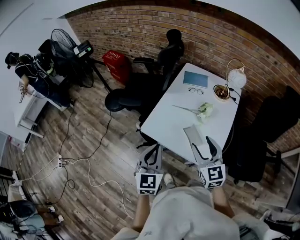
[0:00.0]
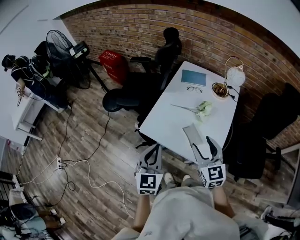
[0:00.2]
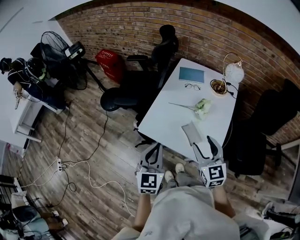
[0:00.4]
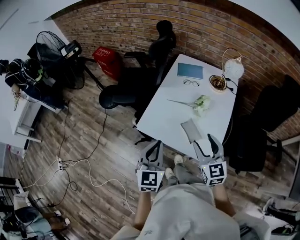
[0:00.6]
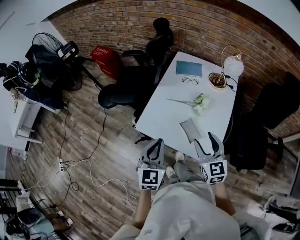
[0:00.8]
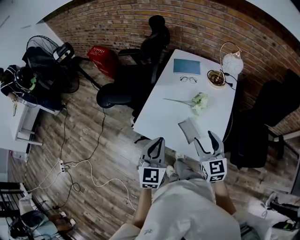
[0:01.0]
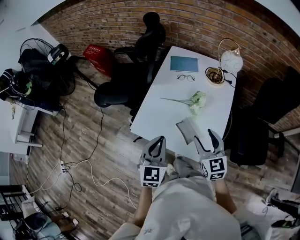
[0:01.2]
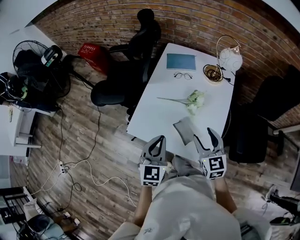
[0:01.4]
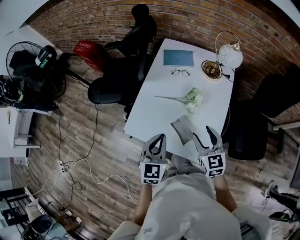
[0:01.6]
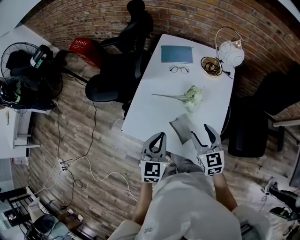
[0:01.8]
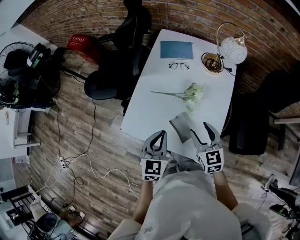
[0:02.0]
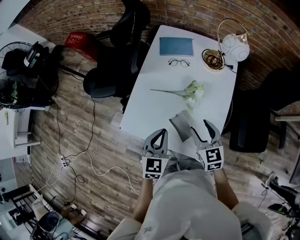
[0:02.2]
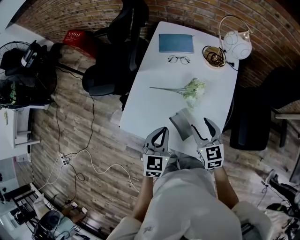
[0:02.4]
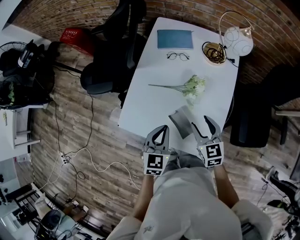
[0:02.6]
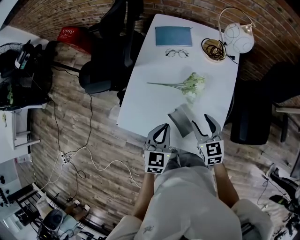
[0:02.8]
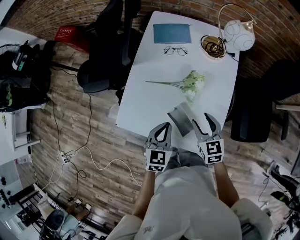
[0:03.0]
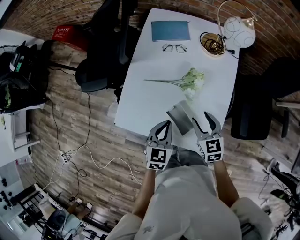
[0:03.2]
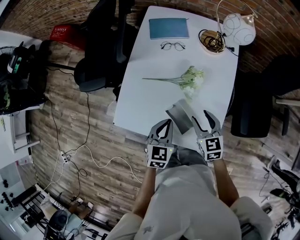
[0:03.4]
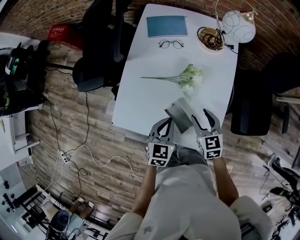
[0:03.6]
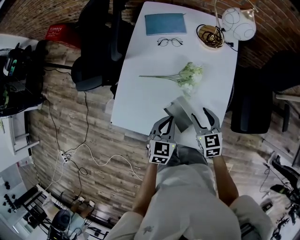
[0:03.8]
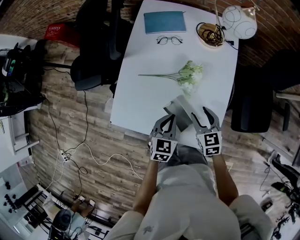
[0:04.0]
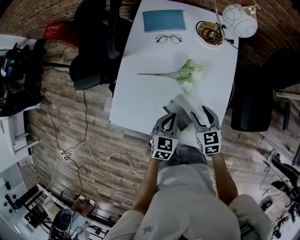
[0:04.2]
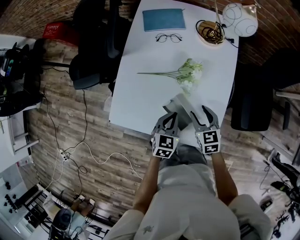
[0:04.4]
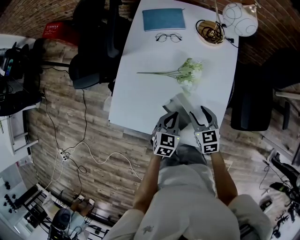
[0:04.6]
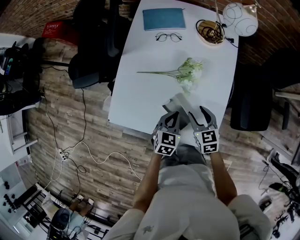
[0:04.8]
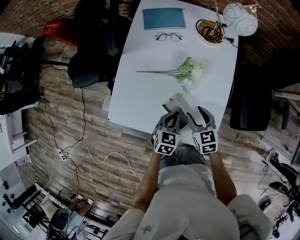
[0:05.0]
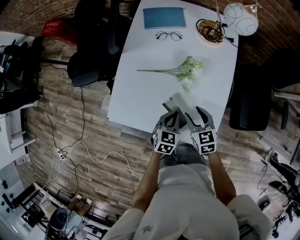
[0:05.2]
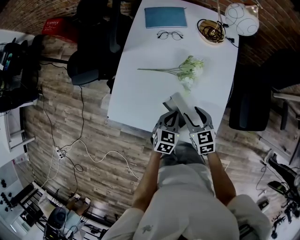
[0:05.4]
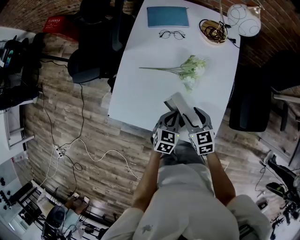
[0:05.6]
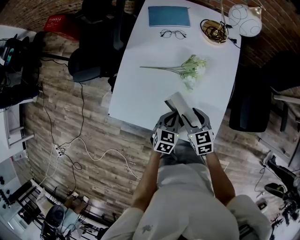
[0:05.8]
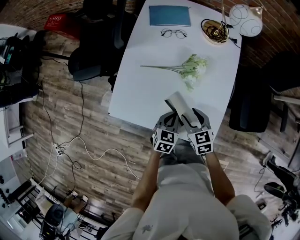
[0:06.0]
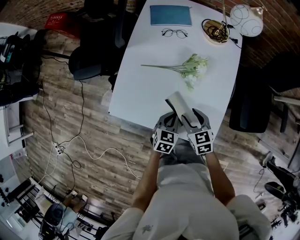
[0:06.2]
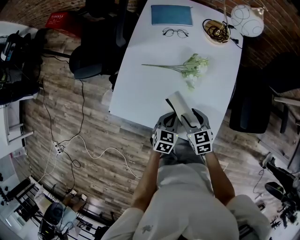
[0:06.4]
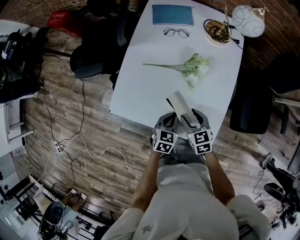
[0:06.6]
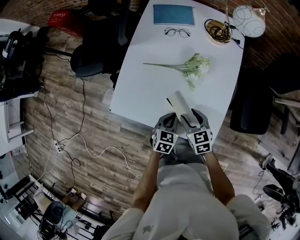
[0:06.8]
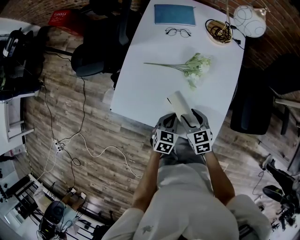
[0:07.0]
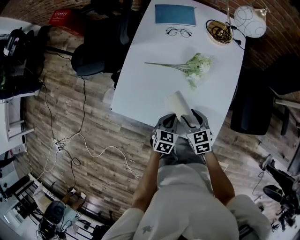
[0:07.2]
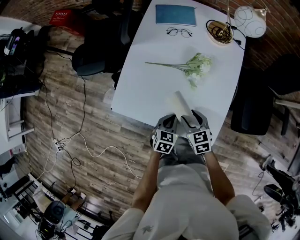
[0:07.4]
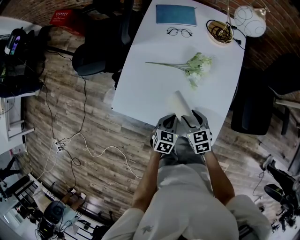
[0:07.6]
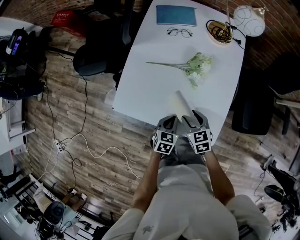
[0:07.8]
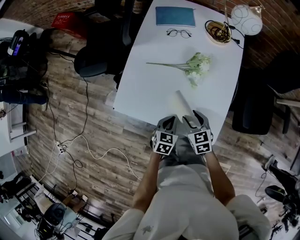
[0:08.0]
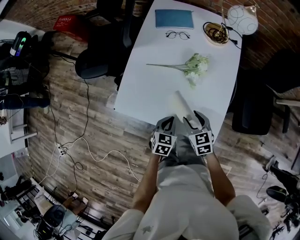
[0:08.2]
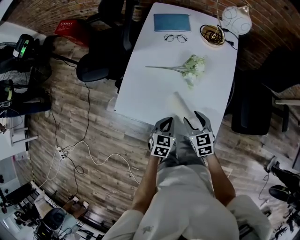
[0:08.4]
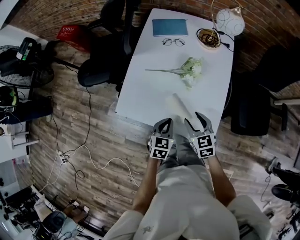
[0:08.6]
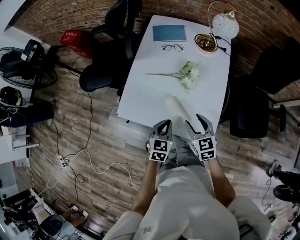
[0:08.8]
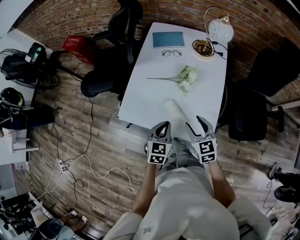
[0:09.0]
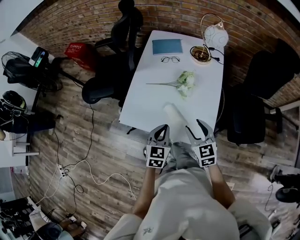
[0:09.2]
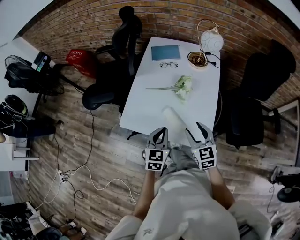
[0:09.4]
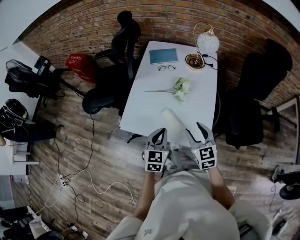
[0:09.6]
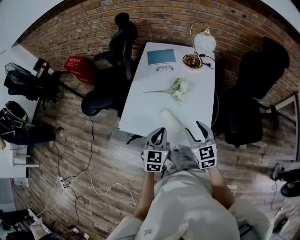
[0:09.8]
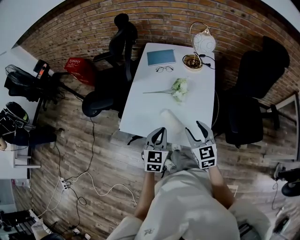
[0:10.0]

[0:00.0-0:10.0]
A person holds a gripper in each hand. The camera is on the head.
0:00.0 to 0:01.4: The left gripper travels forward, to the right and downward by about 15 cm. Meanwhile the right gripper heads downward, forward and to the right, covering roughly 15 cm.
0:01.4 to 0:02.8: Both grippers move downward and forward, roughly 10 cm.
0:02.8 to 0:04.2: The grippers both shift downward by approximately 10 cm.
0:04.2 to 0:05.8: The right gripper shifts by about 5 cm. Meanwhile the left gripper shifts by approximately 5 cm.
0:05.8 to 0:07.2: The grippers move only a little.
0:07.2 to 0:08.6: The two grippers go some 5 cm upward.
0:08.6 to 0:10.0: The grippers both shift upward by about 15 cm.

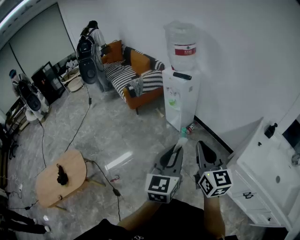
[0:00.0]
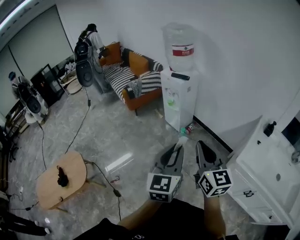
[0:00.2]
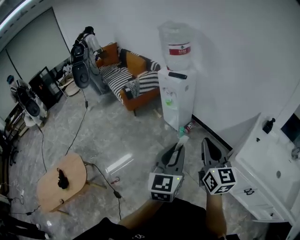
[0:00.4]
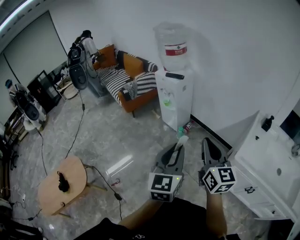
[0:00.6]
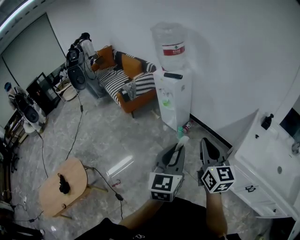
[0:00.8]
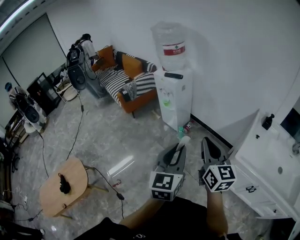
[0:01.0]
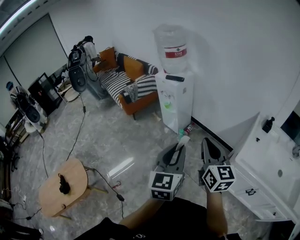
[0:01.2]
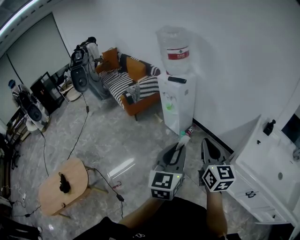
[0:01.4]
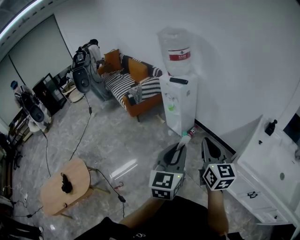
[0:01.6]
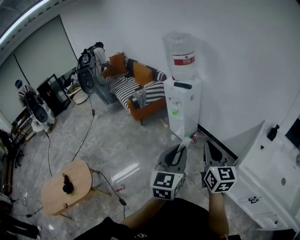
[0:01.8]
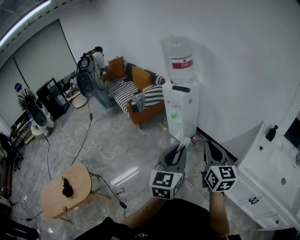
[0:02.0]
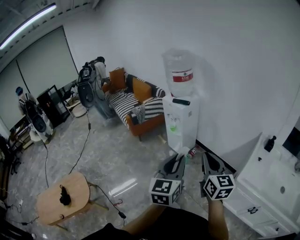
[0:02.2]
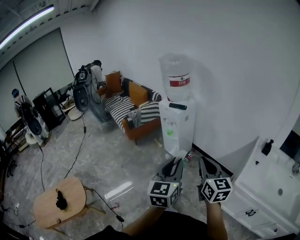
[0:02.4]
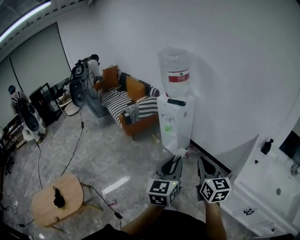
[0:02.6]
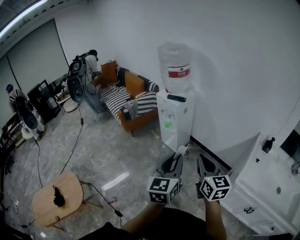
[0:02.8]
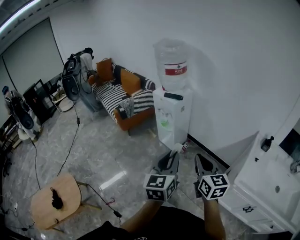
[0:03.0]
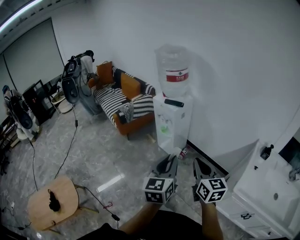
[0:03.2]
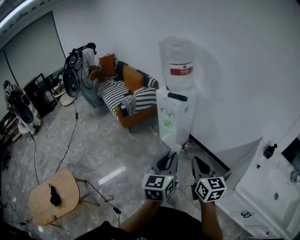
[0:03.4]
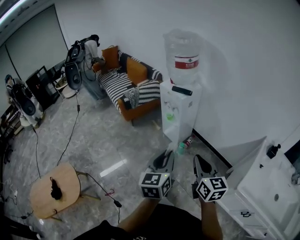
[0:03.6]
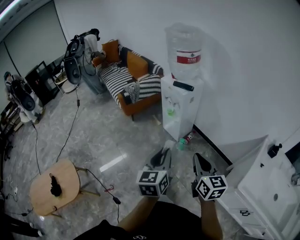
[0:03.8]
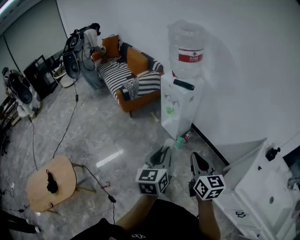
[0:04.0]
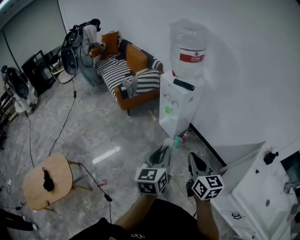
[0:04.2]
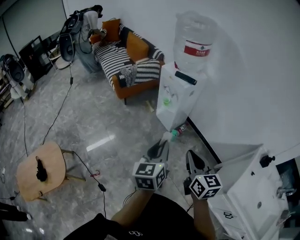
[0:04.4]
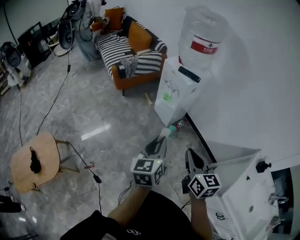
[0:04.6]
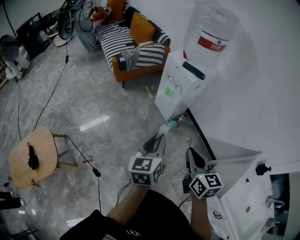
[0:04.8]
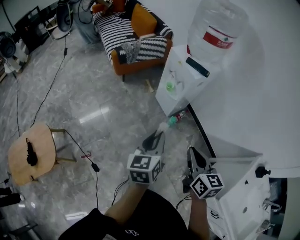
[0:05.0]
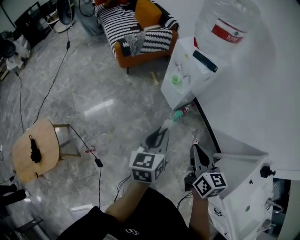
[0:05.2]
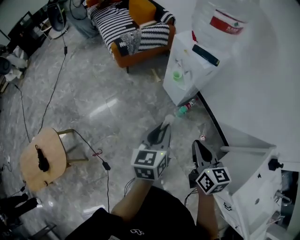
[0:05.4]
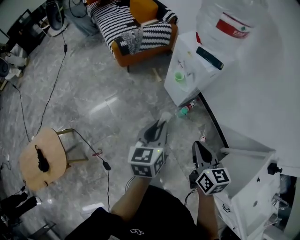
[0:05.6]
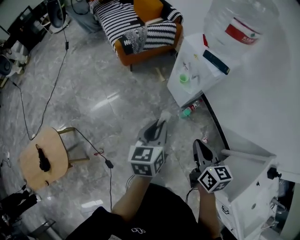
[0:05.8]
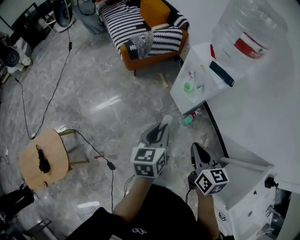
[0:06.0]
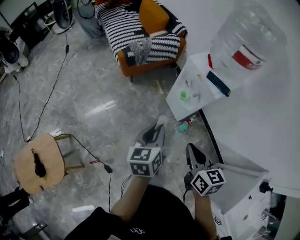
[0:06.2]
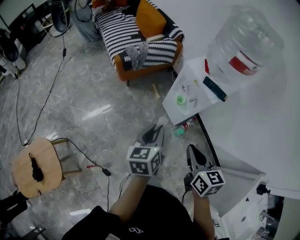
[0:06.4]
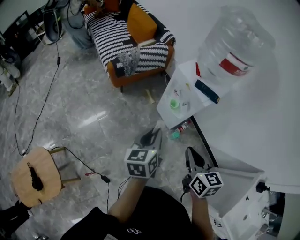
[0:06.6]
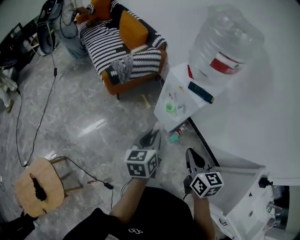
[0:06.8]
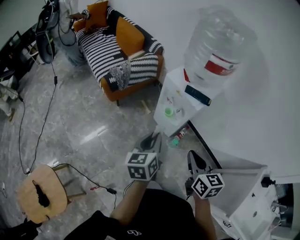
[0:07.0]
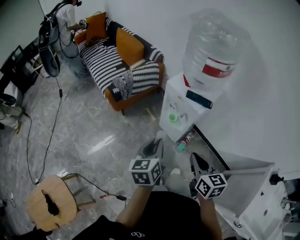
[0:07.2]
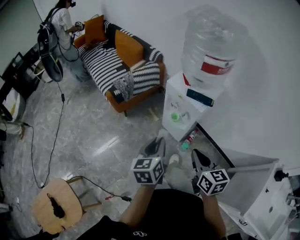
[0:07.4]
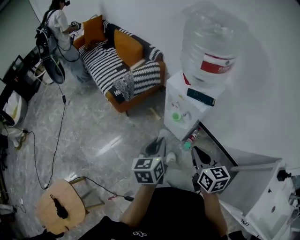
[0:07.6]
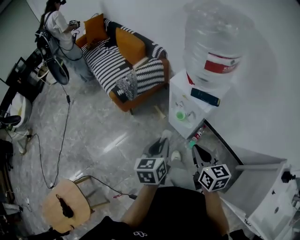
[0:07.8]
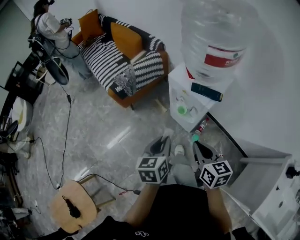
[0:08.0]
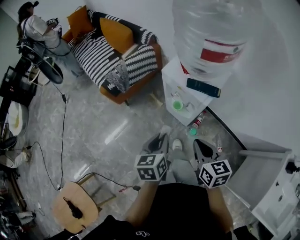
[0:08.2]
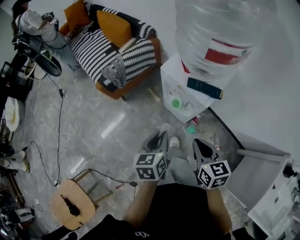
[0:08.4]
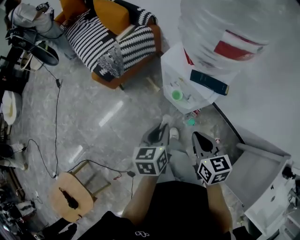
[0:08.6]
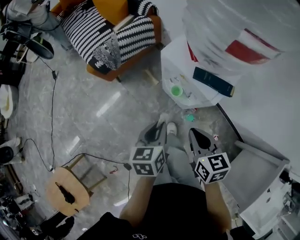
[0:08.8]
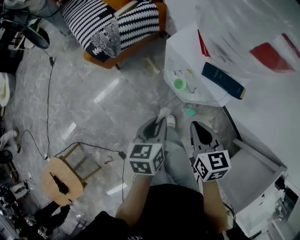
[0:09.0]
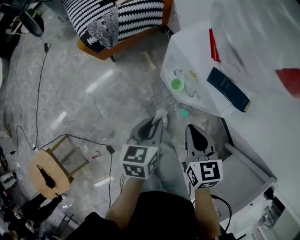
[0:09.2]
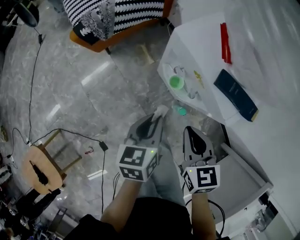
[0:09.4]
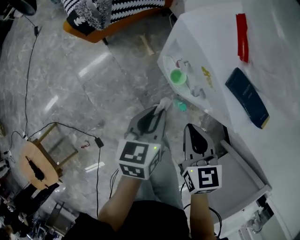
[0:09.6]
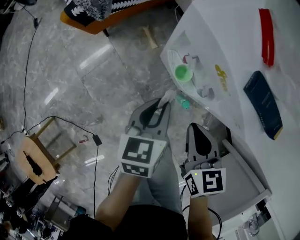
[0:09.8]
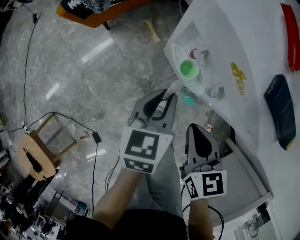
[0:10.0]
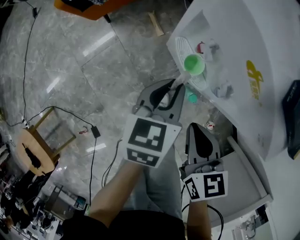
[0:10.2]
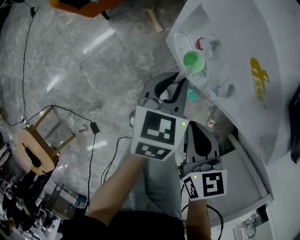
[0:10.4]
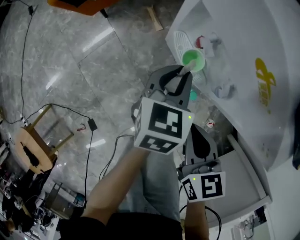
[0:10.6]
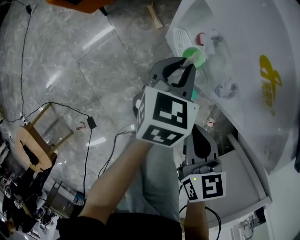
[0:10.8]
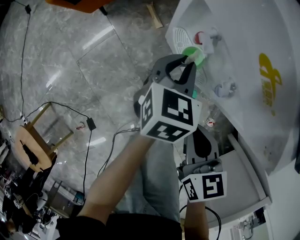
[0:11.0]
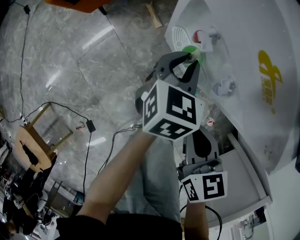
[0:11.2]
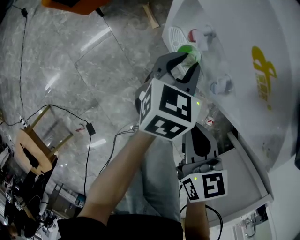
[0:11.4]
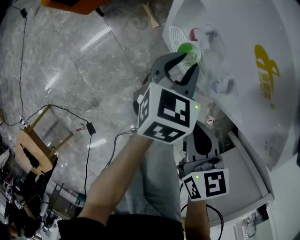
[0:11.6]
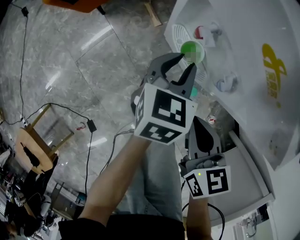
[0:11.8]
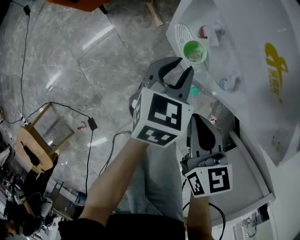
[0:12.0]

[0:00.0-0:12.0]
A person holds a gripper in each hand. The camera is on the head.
0:00.0 to 0:01.6: The right gripper moves approximately 5 cm.
0:01.6 to 0:03.0: Both grippers move forward, some 10 cm.
0:03.0 to 0:04.4: The left gripper travels forward, downward and to the left by some 15 cm. Meanwhile the right gripper heads forward, to the left and downward, covering about 10 cm.
0:04.4 to 0:06.0: The right gripper is displaced forward and to the left by some 25 cm; the left gripper shifts about 25 cm forward, to the left and downward.
0:06.0 to 0:07.6: The two grippers go approximately 10 cm forward.
0:07.6 to 0:09.0: The right gripper travels forward and downward by about 20 cm, while the left gripper is displaced downward and forward by about 20 cm.
0:09.0 to 0:10.4: The right gripper heads downward, covering roughly 15 cm; the left gripper shifts about 20 cm downward and forward.

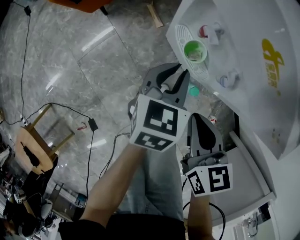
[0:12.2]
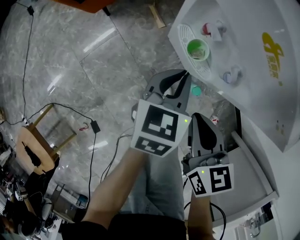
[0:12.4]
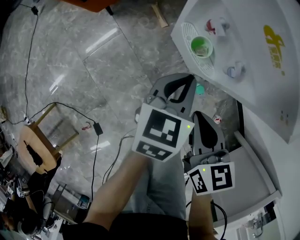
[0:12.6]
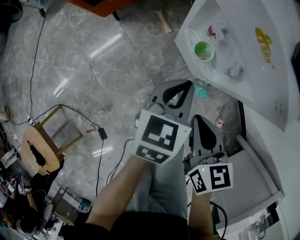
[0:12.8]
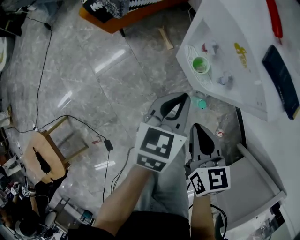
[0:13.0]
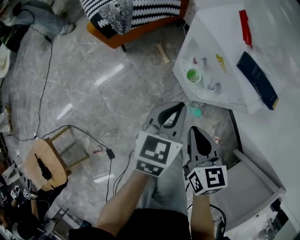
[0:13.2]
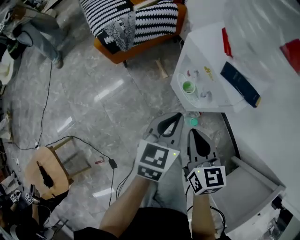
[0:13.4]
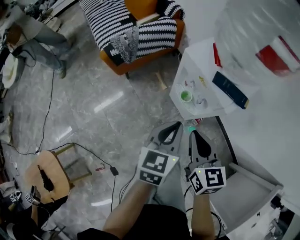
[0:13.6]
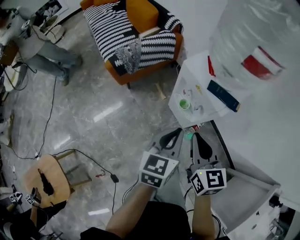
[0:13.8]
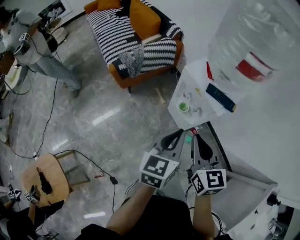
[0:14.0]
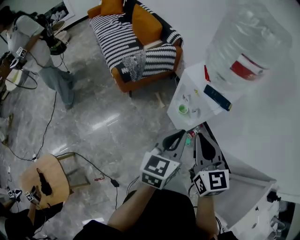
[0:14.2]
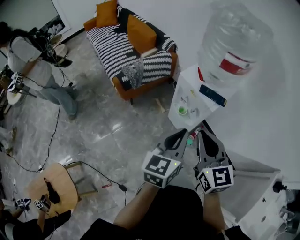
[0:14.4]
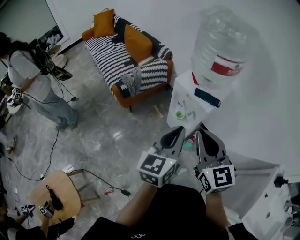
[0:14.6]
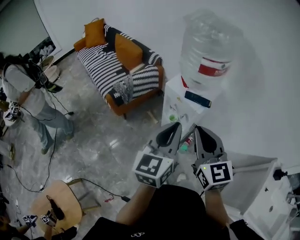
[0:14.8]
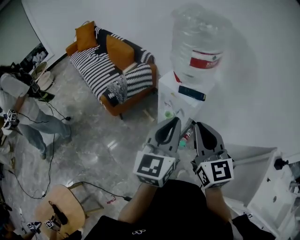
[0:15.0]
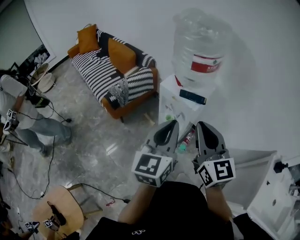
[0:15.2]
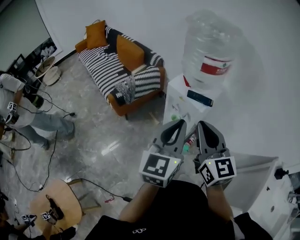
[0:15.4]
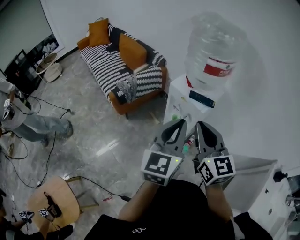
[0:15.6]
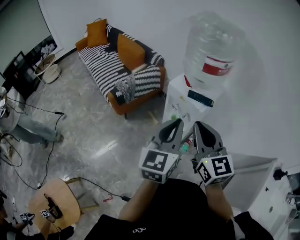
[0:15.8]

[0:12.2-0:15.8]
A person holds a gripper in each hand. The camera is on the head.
0:12.2 to 0:14.0: The right gripper travels upward by some 35 cm, and turns by about 30 degrees. The left gripper moves upward and backward, about 40 cm, and turns by about 20 degrees.
0:14.0 to 0:15.8: The grippers both shift upward and backward by some 20 cm. The left gripper rotates about 20 degrees.
